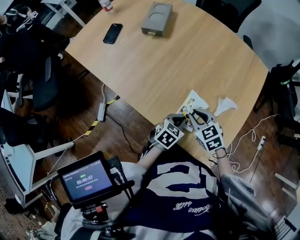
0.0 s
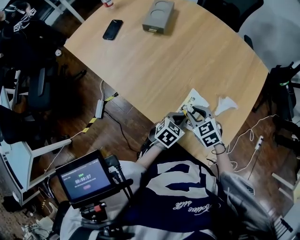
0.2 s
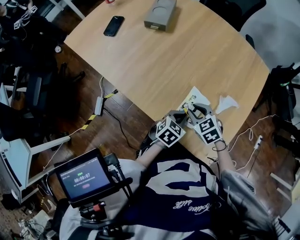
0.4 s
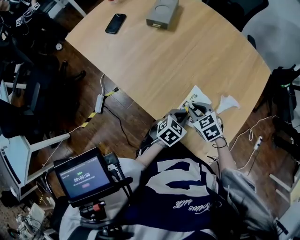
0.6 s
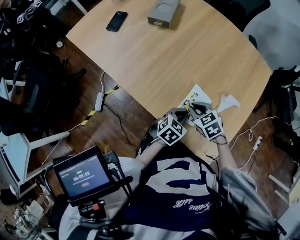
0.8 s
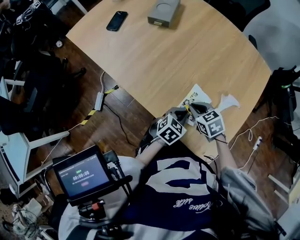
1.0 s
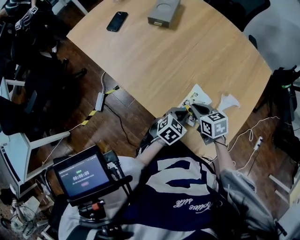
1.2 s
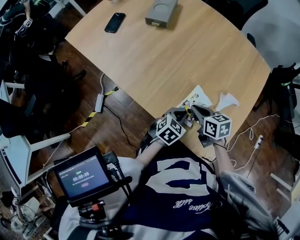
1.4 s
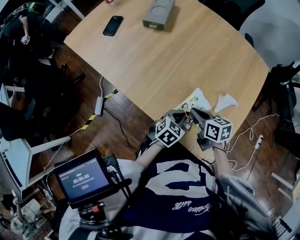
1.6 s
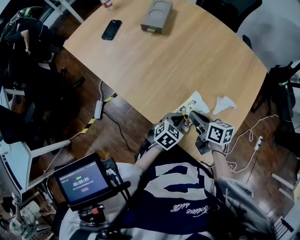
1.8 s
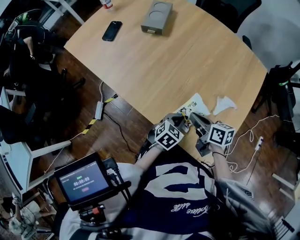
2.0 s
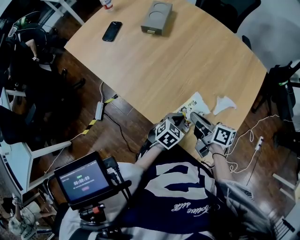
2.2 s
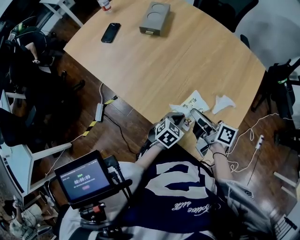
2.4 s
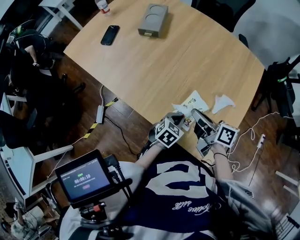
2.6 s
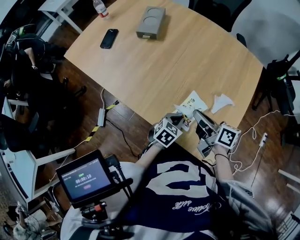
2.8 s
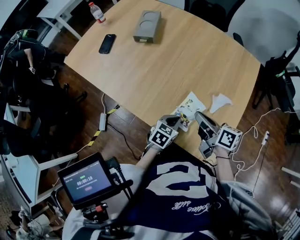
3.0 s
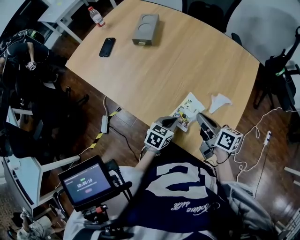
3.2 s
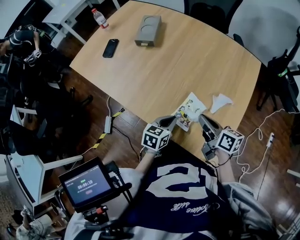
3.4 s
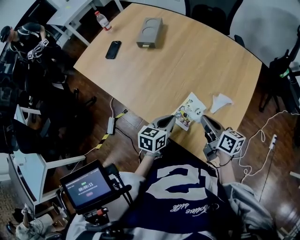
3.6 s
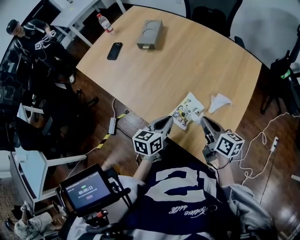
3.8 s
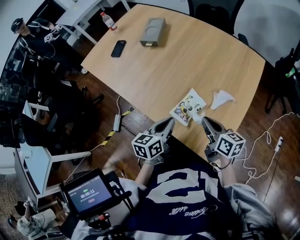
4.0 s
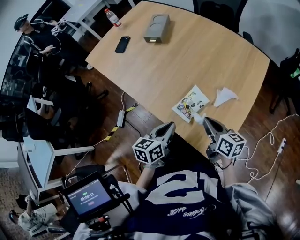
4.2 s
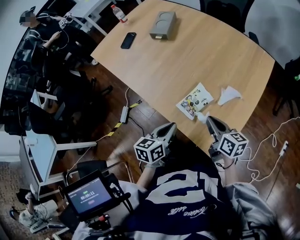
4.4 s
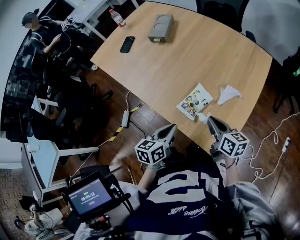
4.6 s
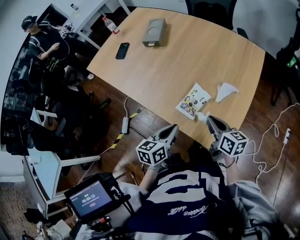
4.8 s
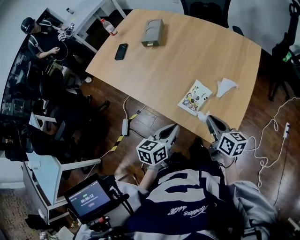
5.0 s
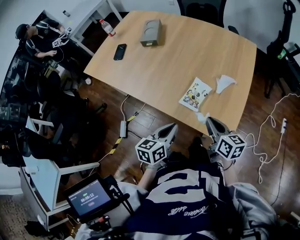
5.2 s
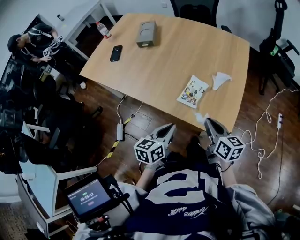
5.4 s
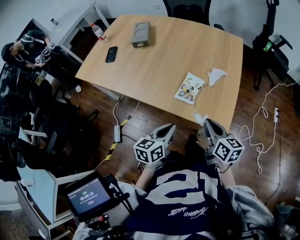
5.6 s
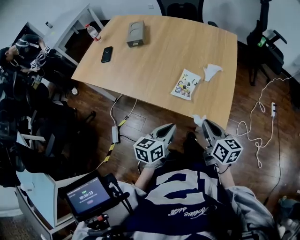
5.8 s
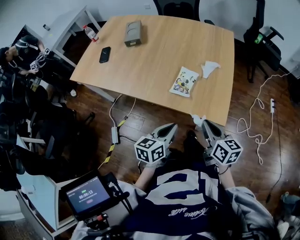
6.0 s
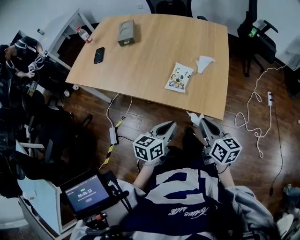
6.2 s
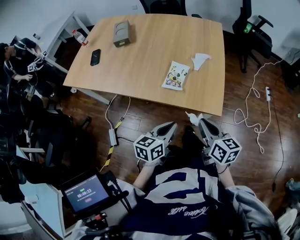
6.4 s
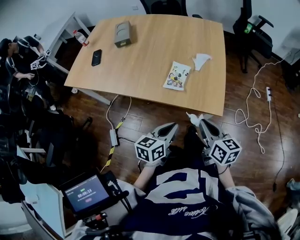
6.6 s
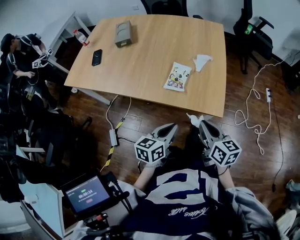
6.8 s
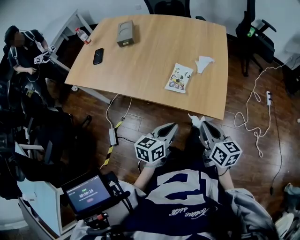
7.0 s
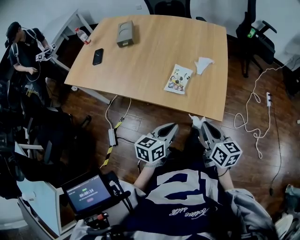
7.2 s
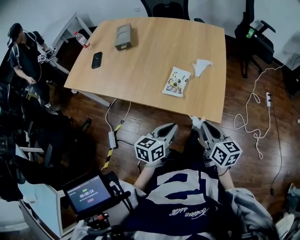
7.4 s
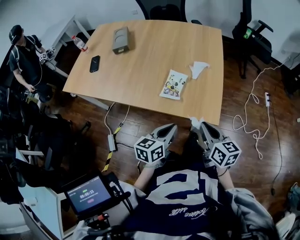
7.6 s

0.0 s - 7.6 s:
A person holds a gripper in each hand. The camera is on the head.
0.0 s - 1.6 s: The right gripper swivels about 40 degrees.
1.6 s - 3.0 s: The right gripper is displaced upward by roughly 10 cm, and rotates roughly 30 degrees.
3.0 s - 4.6 s: The left gripper travels upward and backward by roughly 15 cm, and turns by approximately 40 degrees. Meanwhile the right gripper goes some 10 cm backward and to the right.
4.6 s - 6.0 s: The right gripper heads backward, covering roughly 15 cm, and rotates roughly 20 degrees, while the left gripper moves backward, about 10 cm, and changes its angle by about 20 degrees.
6.0 s - 7.6 s: There are only small adjustments of the grippers.

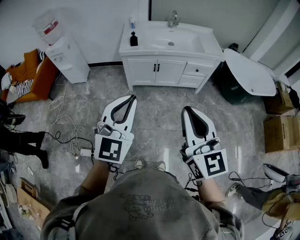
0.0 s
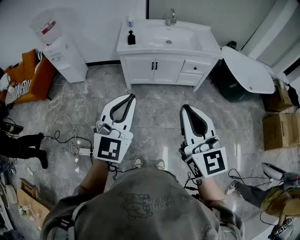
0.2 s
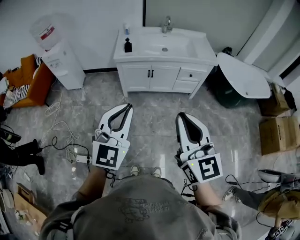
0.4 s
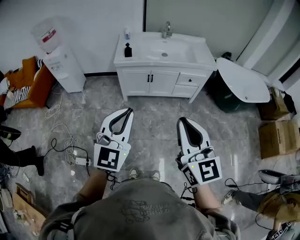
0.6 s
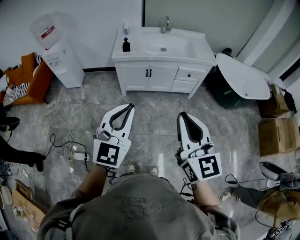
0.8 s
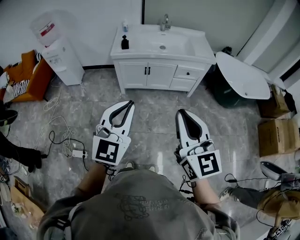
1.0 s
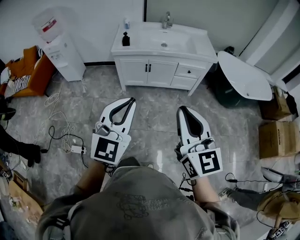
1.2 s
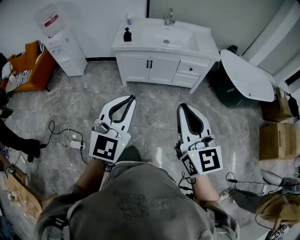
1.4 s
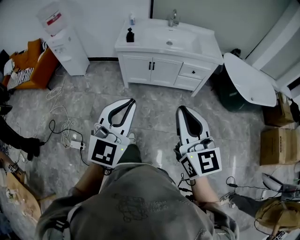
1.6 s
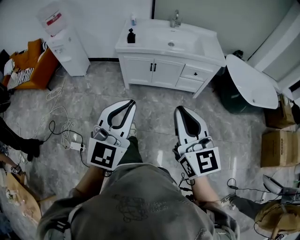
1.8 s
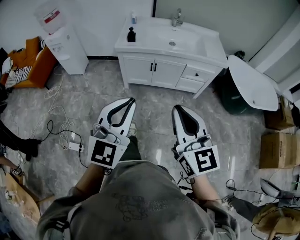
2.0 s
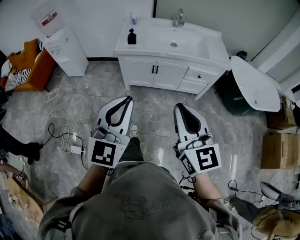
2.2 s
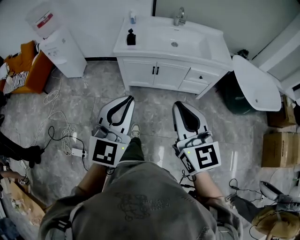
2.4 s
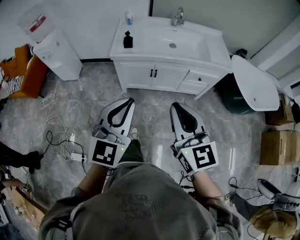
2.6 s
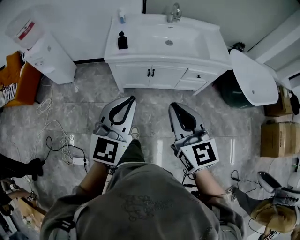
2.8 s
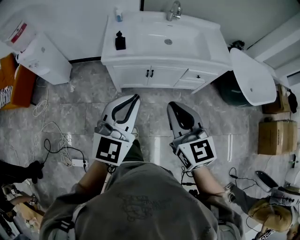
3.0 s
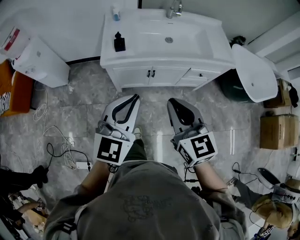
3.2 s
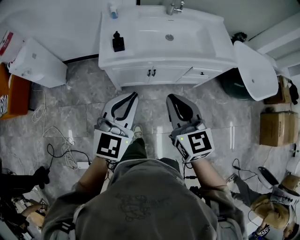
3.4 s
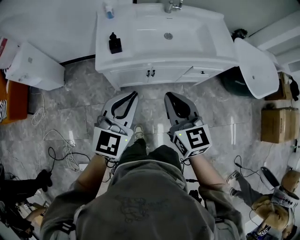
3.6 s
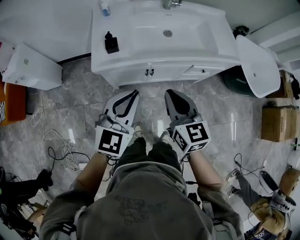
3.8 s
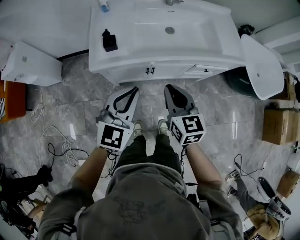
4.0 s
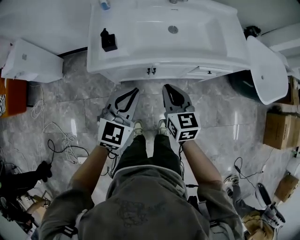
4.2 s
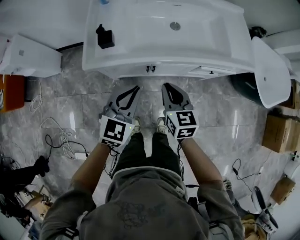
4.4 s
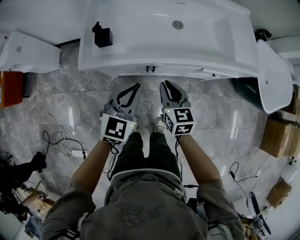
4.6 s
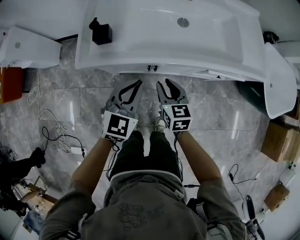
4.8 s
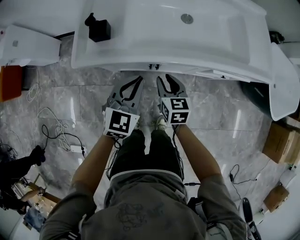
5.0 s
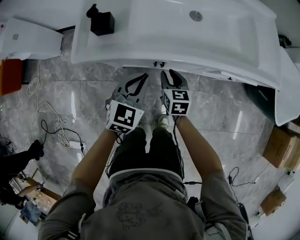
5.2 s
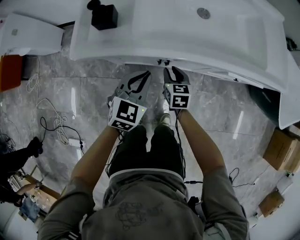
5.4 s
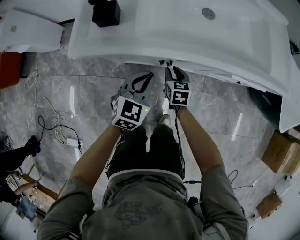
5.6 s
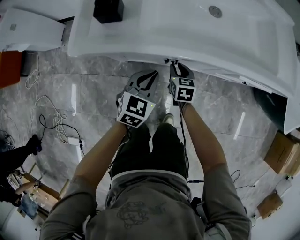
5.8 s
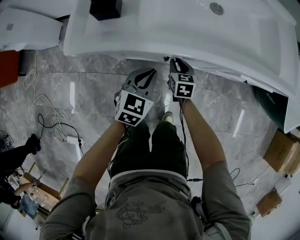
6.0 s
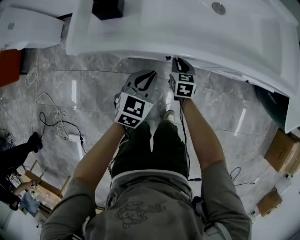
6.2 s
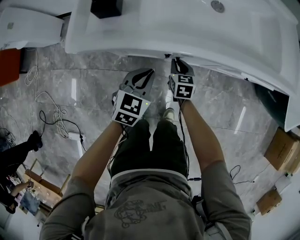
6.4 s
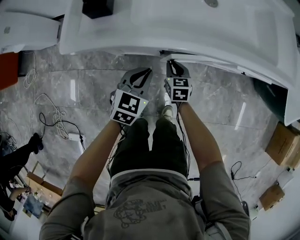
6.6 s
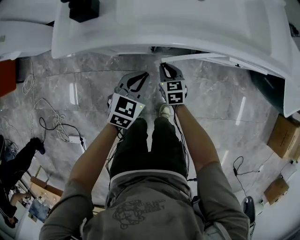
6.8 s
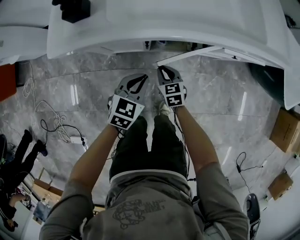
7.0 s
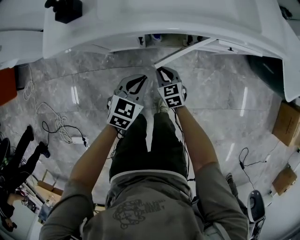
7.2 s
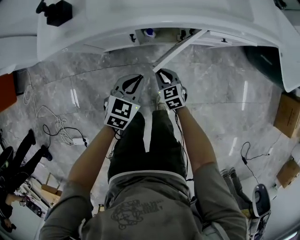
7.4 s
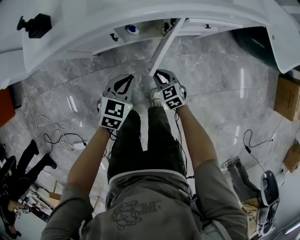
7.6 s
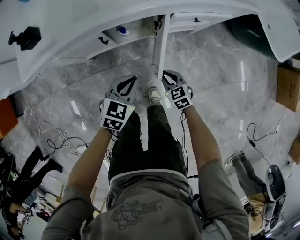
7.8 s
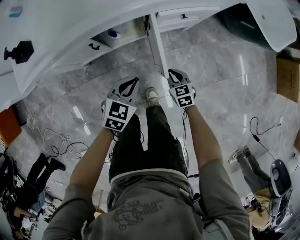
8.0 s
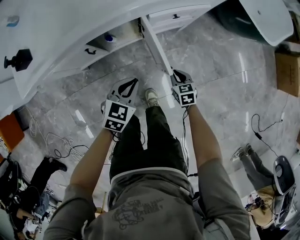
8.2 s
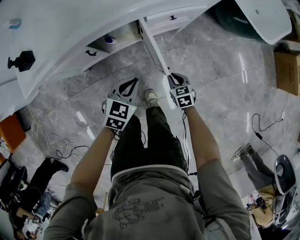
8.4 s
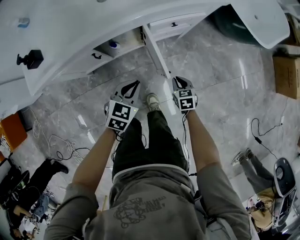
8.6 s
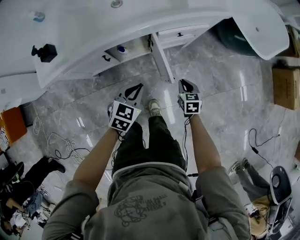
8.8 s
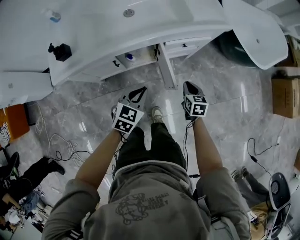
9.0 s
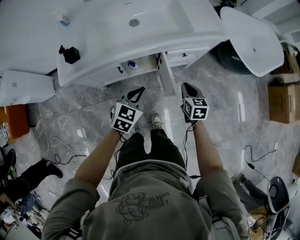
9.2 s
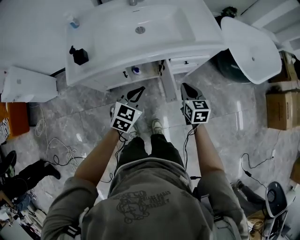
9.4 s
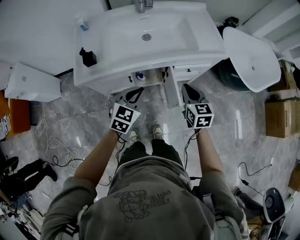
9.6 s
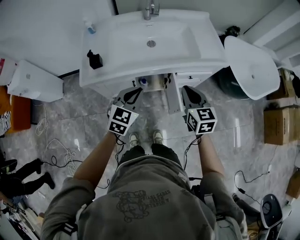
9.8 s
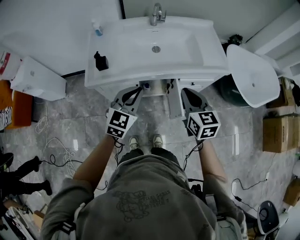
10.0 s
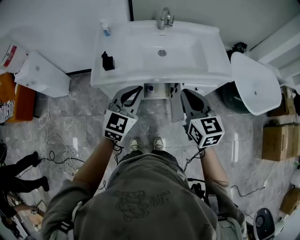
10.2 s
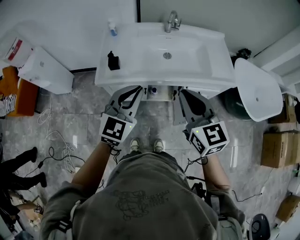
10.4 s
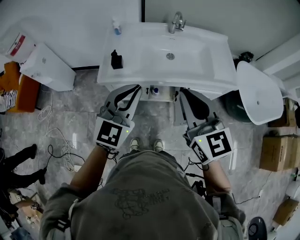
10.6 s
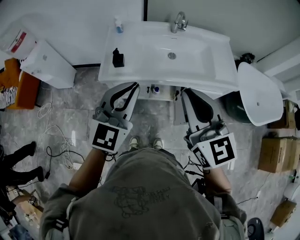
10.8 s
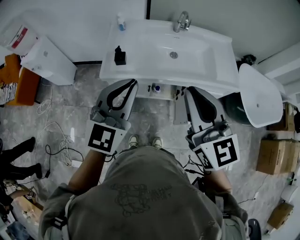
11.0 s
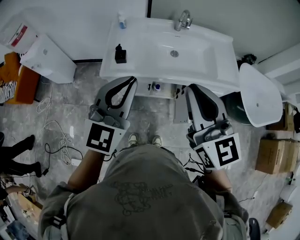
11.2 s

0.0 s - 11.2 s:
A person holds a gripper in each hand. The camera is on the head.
0.0 s - 1.6 s: Both grippers move to the right, roughly 10 cm.
1.6 s - 3.2 s: Both grippers travel together forward, some 35 cm.
3.2 s - 4.8 s: Both grippers travel together downward and forward, about 40 cm. The right gripper changes its angle by about 20 degrees, and opens its fingers.
4.8 s - 6.4 s: The grippers both shift downward by some 20 cm.
6.4 s - 8.0 s: The grippers both shift to the right and backward by roughly 30 cm. The left gripper turns by roughly 30 degrees.
8.0 s - 9.6 s: The right gripper moves upward, some 40 cm. The left gripper is displaced upward by approximately 25 cm.
9.6 s - 11.2 s: The two grippers go roughly 35 cm upward and to the left. The right gripper rotates roughly 40 degrees, while the left gripper changes its angle by approximately 30 degrees.

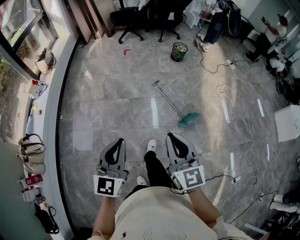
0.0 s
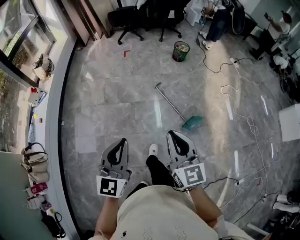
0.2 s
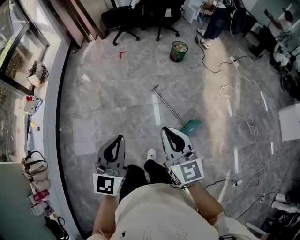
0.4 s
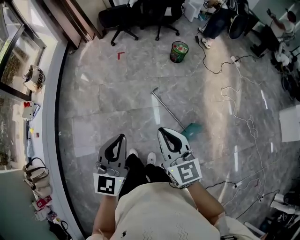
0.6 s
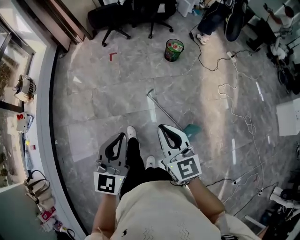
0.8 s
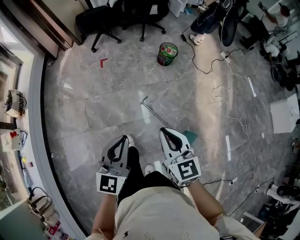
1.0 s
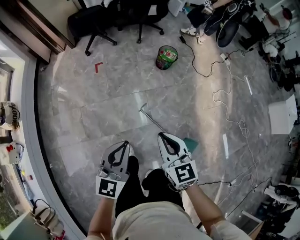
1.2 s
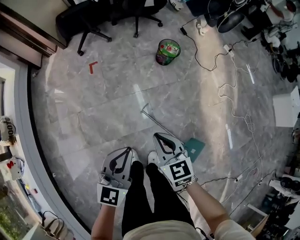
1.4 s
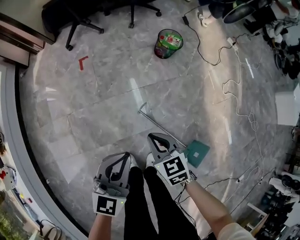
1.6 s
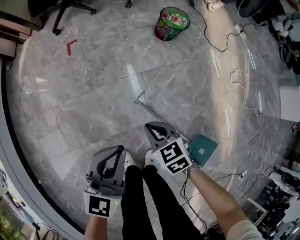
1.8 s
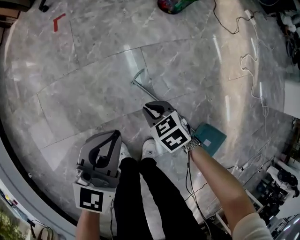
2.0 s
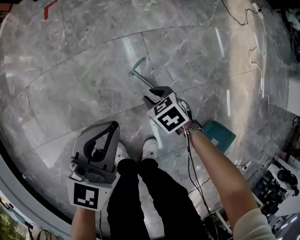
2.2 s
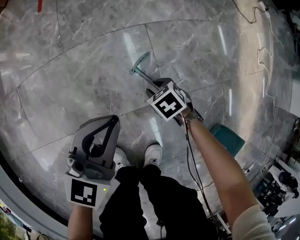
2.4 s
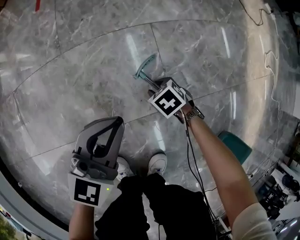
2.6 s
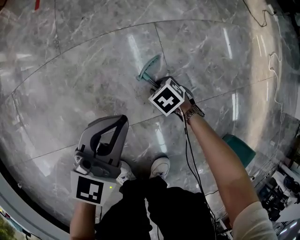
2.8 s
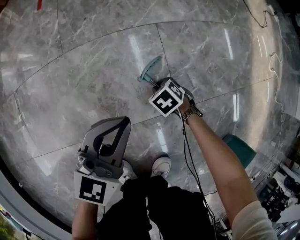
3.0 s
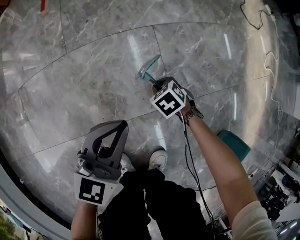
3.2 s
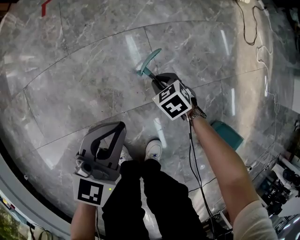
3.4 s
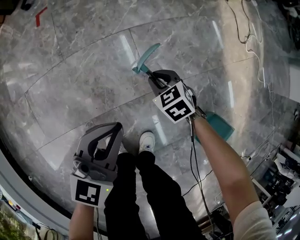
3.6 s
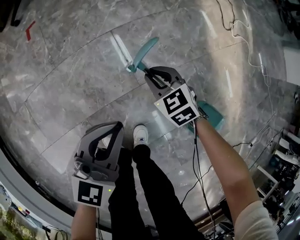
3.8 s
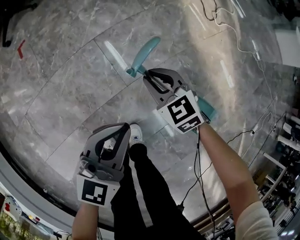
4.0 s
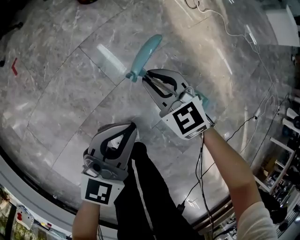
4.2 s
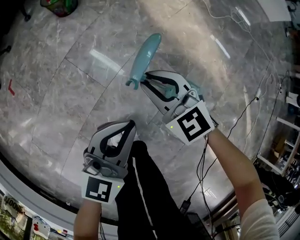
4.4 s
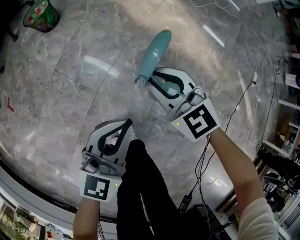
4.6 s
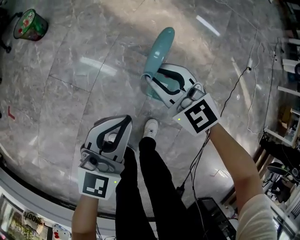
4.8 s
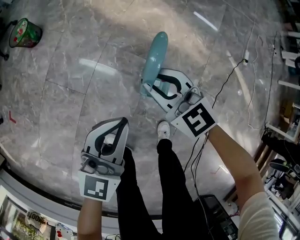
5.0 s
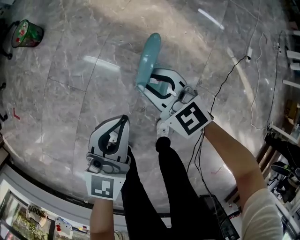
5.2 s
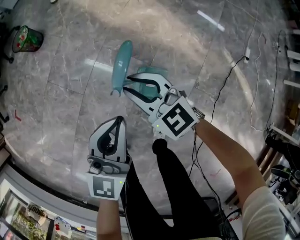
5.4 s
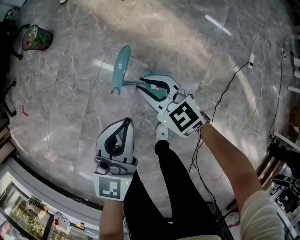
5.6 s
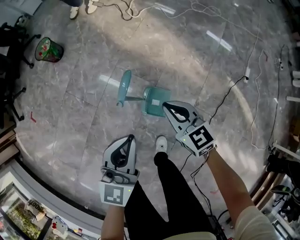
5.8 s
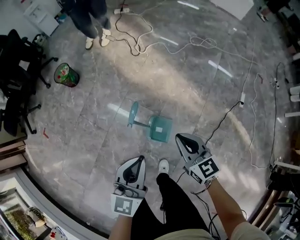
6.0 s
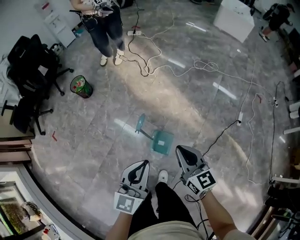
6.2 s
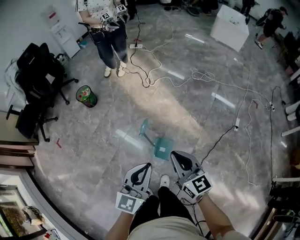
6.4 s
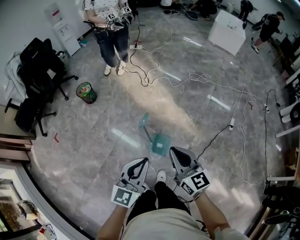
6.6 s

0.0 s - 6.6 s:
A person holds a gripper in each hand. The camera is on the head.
0.0 s - 1.6 s: The pair of grippers is taken forward, about 70 cm. The right gripper tips its fingers downward by about 40 degrees; the left gripper rotates roughly 30 degrees.
1.6 s - 3.2 s: Both grippers move downward, approximately 60 cm. The right gripper tips its fingers downward by roughly 30 degrees.
3.2 s - 5.0 s: The two grippers travel together, approximately 50 cm. The left gripper rotates roughly 50 degrees. The right gripper heads upward, covering some 50 cm, and angles its fingers upward, by about 50 degrees.
5.0 s - 6.6 s: Both grippers move upward and backward, some 50 cm. The right gripper rotates approximately 30 degrees.
